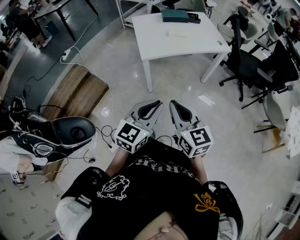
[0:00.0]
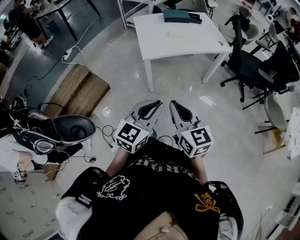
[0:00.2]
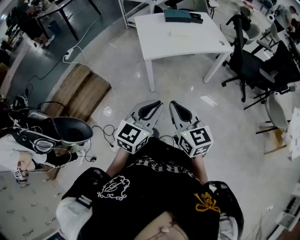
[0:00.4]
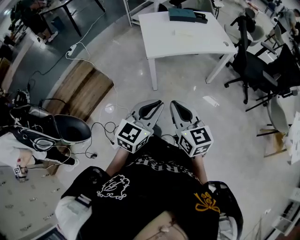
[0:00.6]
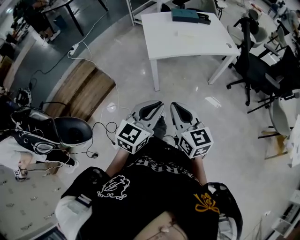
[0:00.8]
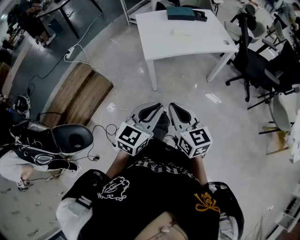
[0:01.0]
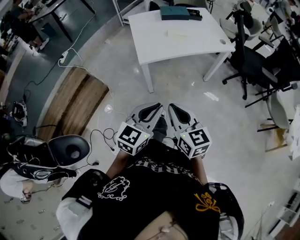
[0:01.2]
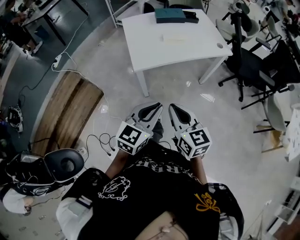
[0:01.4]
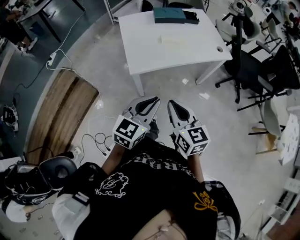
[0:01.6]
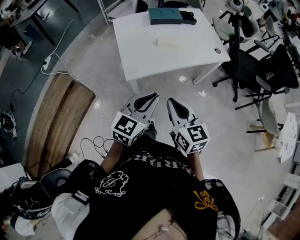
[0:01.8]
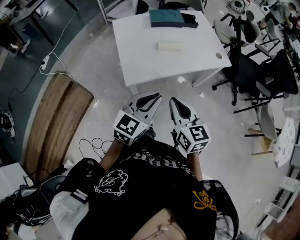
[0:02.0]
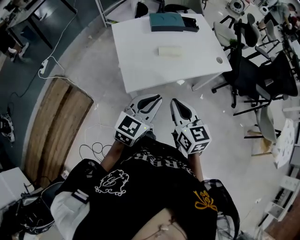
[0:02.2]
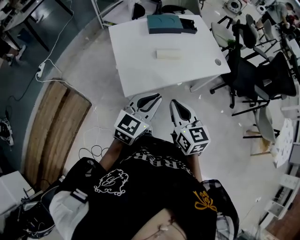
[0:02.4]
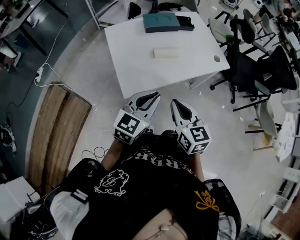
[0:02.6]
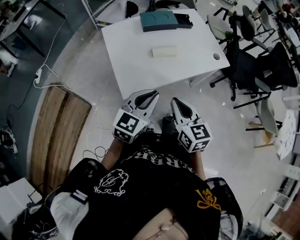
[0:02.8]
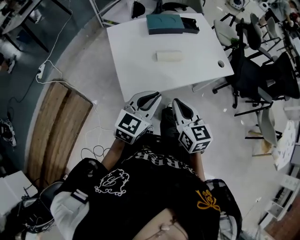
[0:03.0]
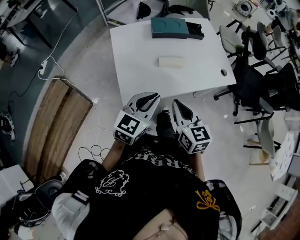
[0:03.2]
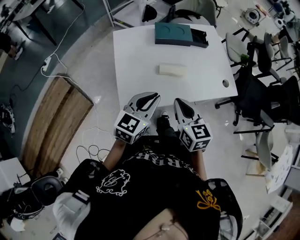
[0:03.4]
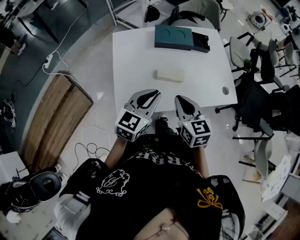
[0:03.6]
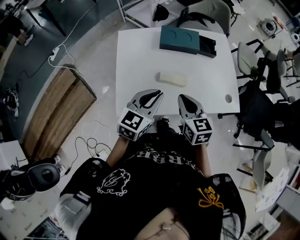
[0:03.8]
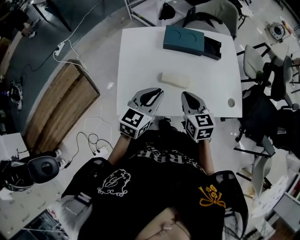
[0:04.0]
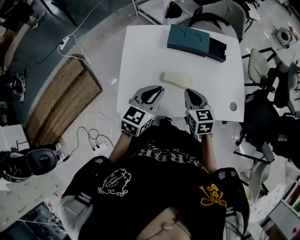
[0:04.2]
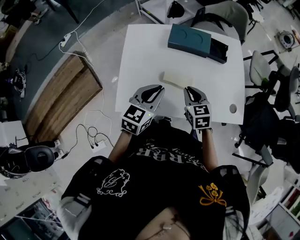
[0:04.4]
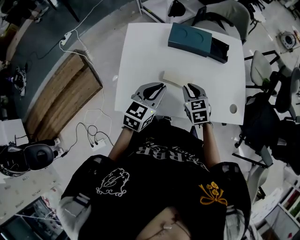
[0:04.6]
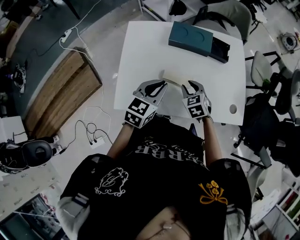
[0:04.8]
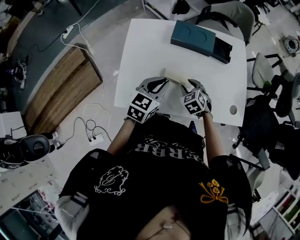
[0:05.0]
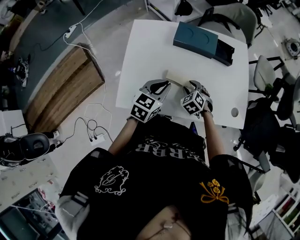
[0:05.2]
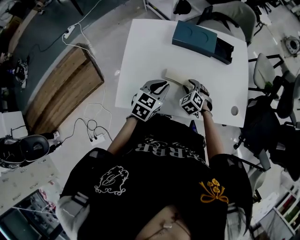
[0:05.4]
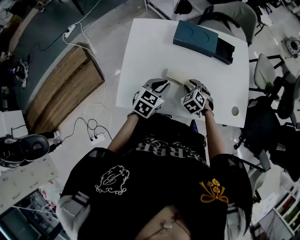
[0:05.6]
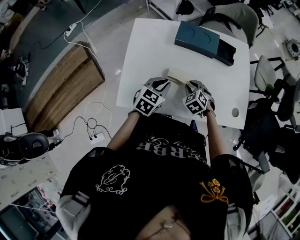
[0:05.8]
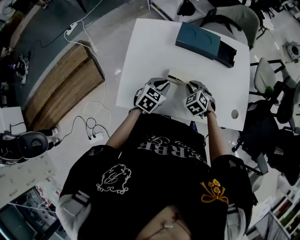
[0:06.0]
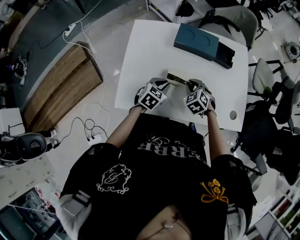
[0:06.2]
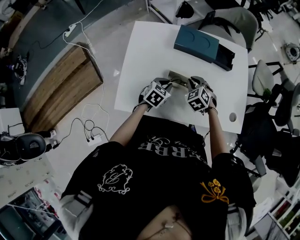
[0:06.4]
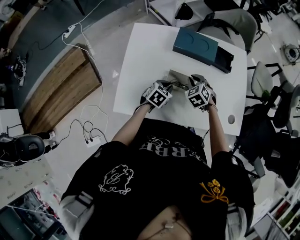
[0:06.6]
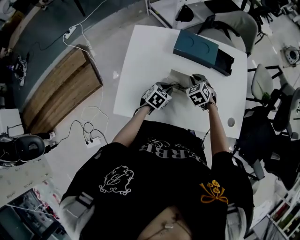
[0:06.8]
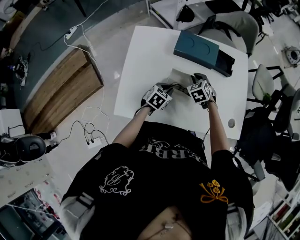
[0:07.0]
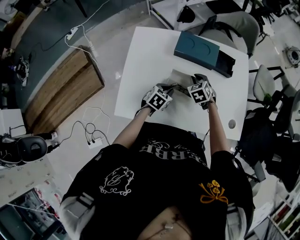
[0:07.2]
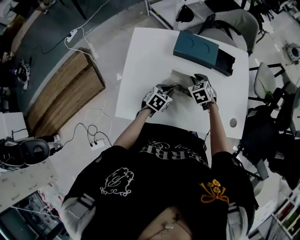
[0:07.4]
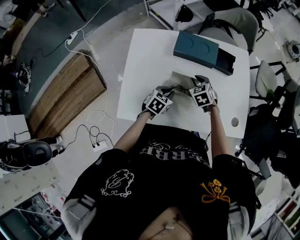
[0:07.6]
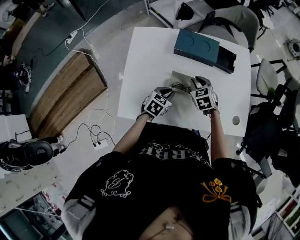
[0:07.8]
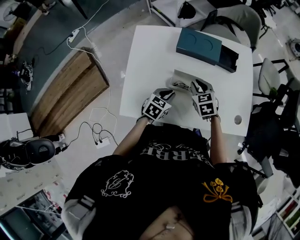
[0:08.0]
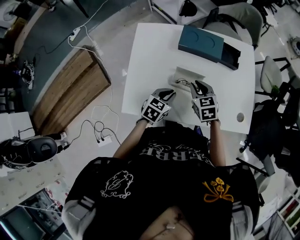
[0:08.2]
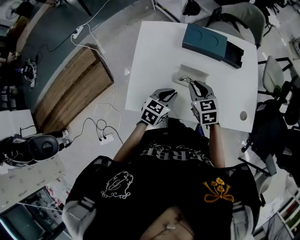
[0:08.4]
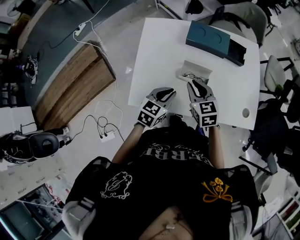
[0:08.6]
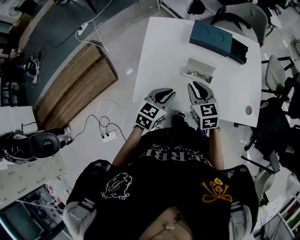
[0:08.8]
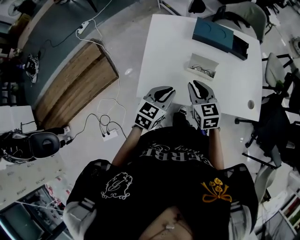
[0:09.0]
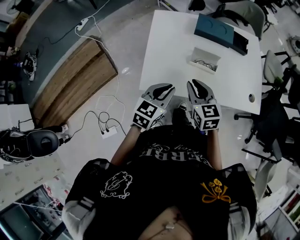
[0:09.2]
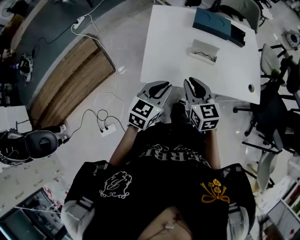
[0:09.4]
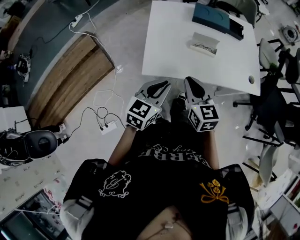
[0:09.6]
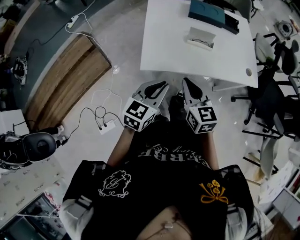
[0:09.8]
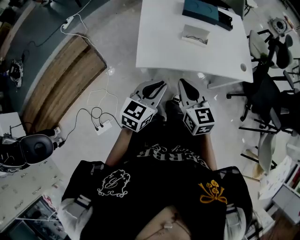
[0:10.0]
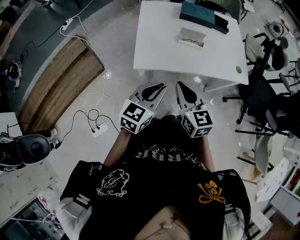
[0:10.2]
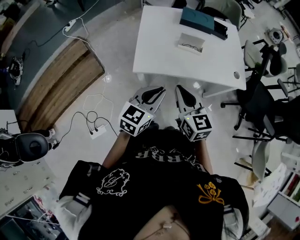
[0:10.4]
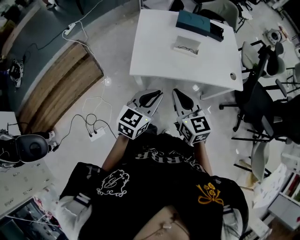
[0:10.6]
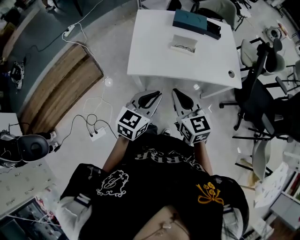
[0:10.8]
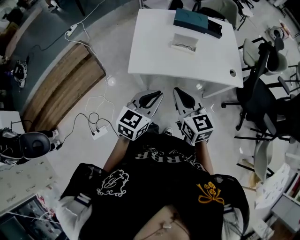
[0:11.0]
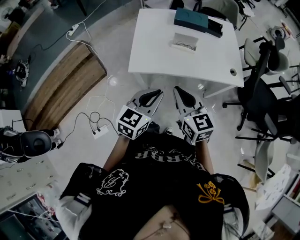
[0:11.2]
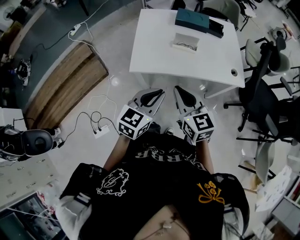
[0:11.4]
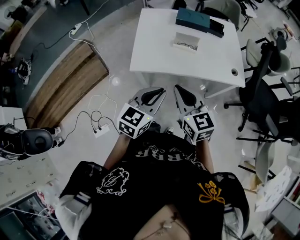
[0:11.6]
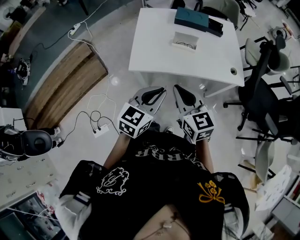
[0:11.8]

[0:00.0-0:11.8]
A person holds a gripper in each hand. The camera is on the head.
0:00.0 to 0:01.4: Both grippers travel together forward, about 15 cm.
0:01.4 to 0:03.0: Both grippers move forward, some 30 cm.
0:03.0 to 0:04.4: The left gripper goes approximately 20 cm forward, and changes its angle by about 30 degrees. Meanwhile the right gripper travels forward and downward by about 30 cm, and rotates roughly 30 degrees.
0:04.4 to 0:06.0: Both grippers travel together downward, approximately 10 cm. The right gripper rotates some 40 degrees, and opens and closes again.
0:06.0 to 0:07.4: The left gripper heads downward and forward, covering approximately 10 cm, while the right gripper shifts approximately 10 cm forward.
0:07.4 to 0:08.8: The left gripper heads upward, backward and to the left, covering about 20 cm. Meanwhile the right gripper travels backward, upward and to the left by approximately 25 cm, and turns by some 30 degrees.
0:08.8 to 0:10.4: The left gripper shifts about 25 cm backward and upward; the right gripper is displaced backward by roughly 30 cm.
0:10.4 to 0:11.8: The two grippers go some 5 cm to the right.

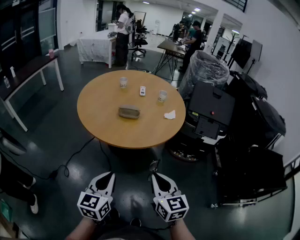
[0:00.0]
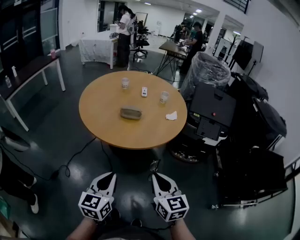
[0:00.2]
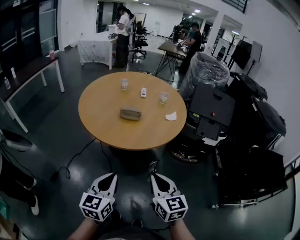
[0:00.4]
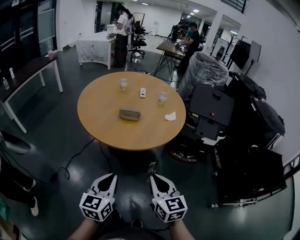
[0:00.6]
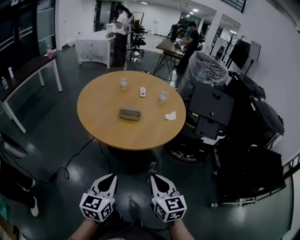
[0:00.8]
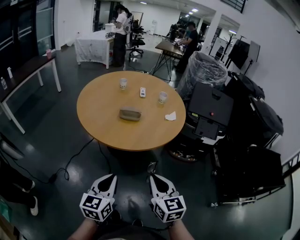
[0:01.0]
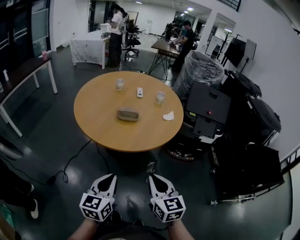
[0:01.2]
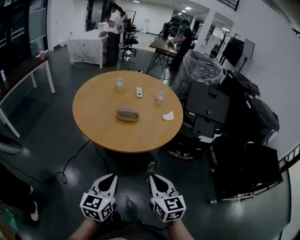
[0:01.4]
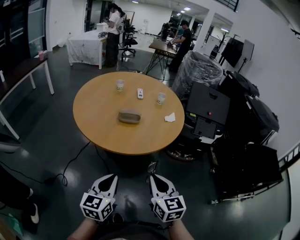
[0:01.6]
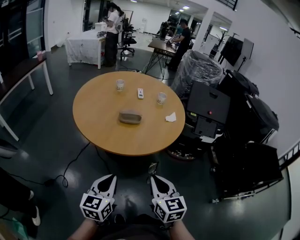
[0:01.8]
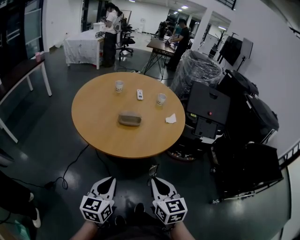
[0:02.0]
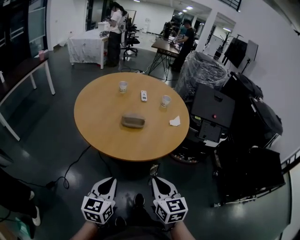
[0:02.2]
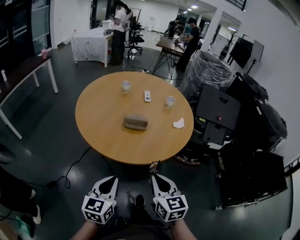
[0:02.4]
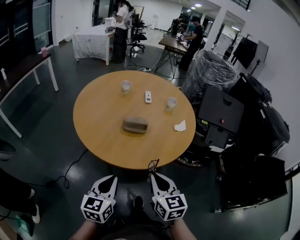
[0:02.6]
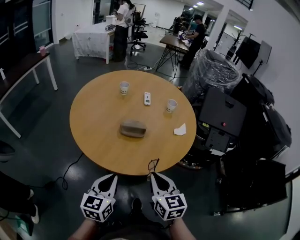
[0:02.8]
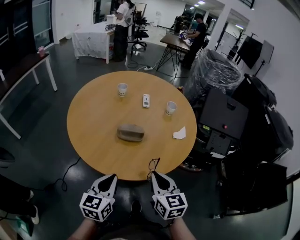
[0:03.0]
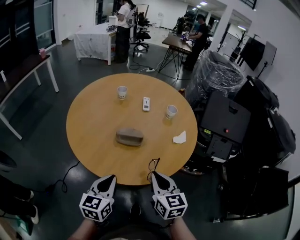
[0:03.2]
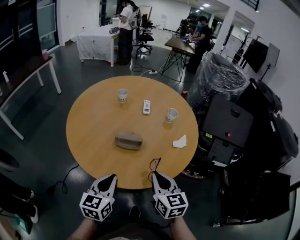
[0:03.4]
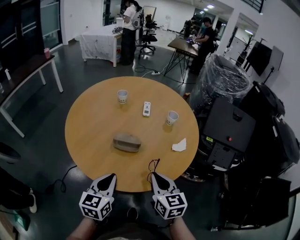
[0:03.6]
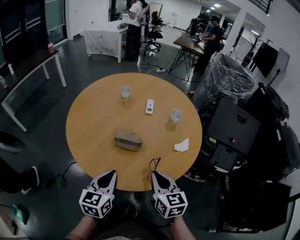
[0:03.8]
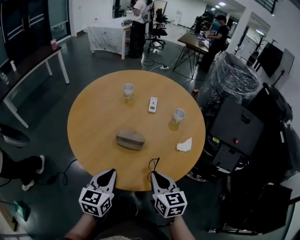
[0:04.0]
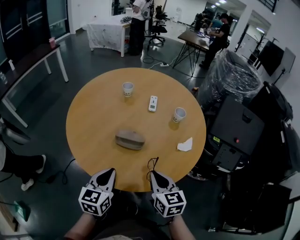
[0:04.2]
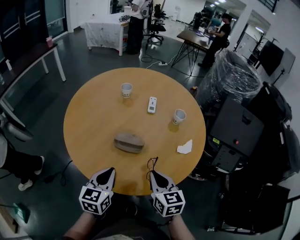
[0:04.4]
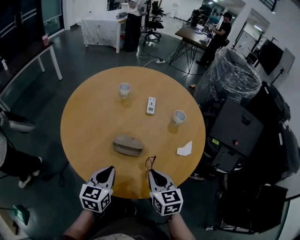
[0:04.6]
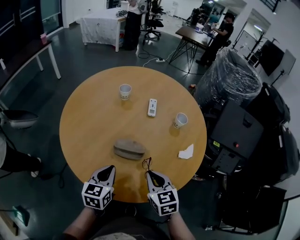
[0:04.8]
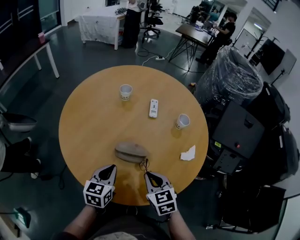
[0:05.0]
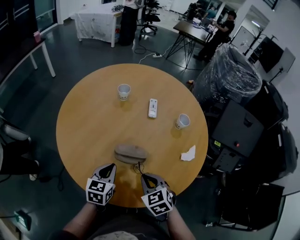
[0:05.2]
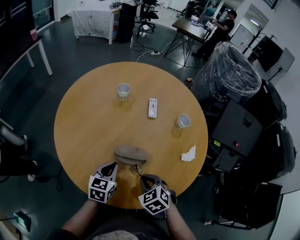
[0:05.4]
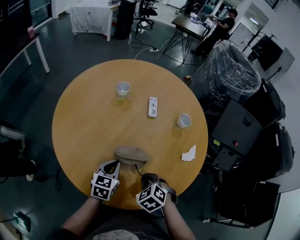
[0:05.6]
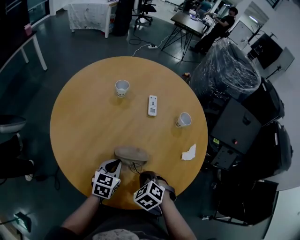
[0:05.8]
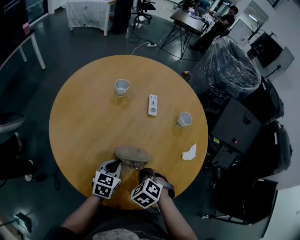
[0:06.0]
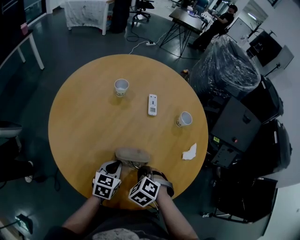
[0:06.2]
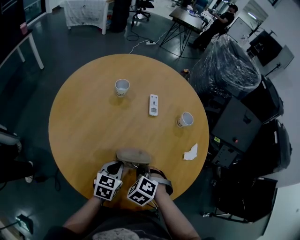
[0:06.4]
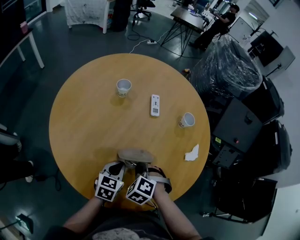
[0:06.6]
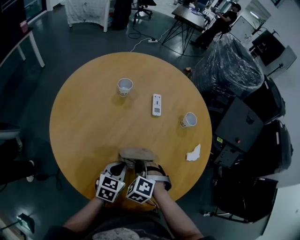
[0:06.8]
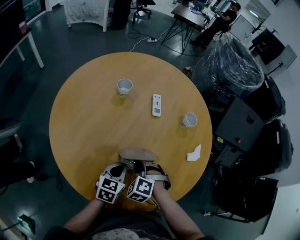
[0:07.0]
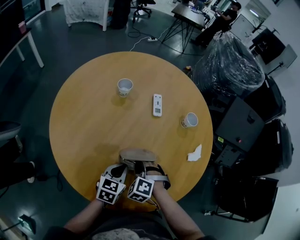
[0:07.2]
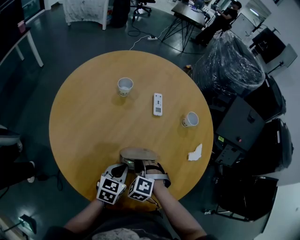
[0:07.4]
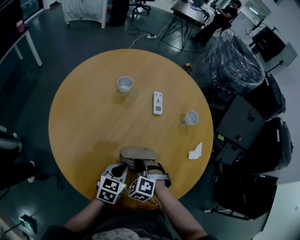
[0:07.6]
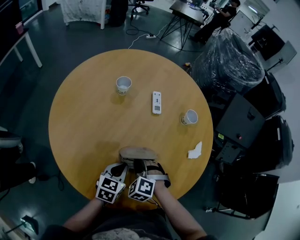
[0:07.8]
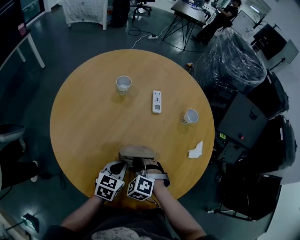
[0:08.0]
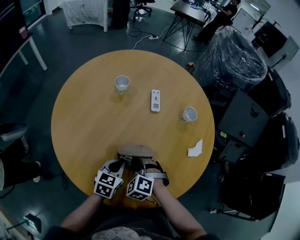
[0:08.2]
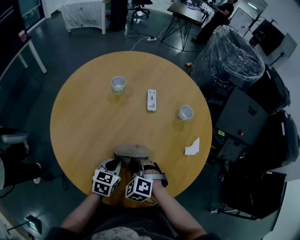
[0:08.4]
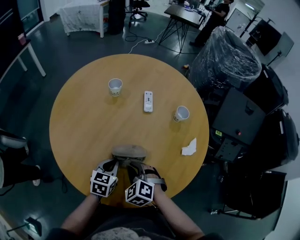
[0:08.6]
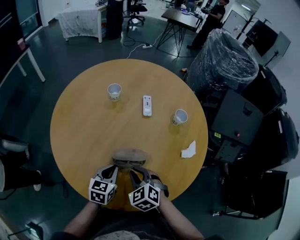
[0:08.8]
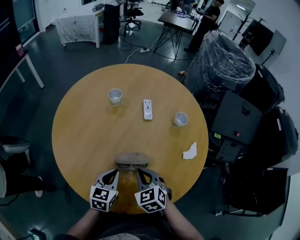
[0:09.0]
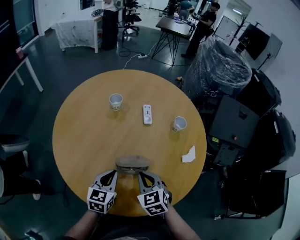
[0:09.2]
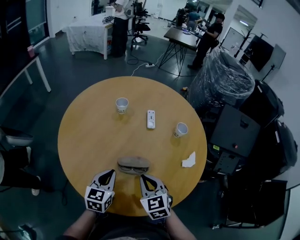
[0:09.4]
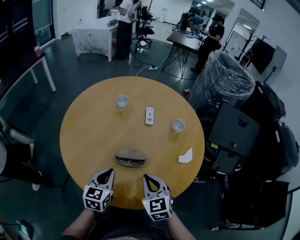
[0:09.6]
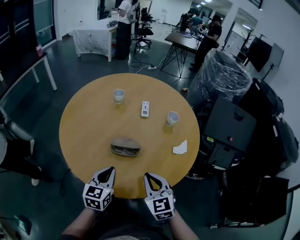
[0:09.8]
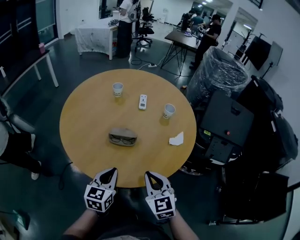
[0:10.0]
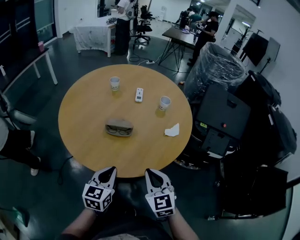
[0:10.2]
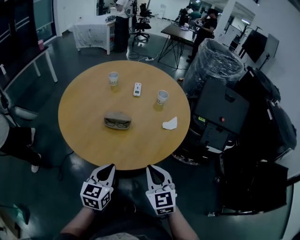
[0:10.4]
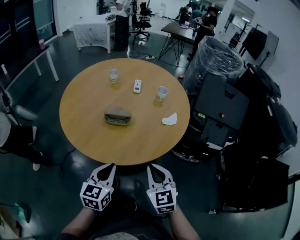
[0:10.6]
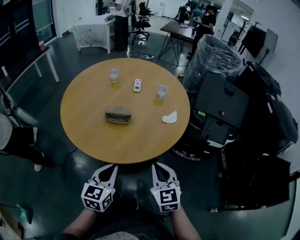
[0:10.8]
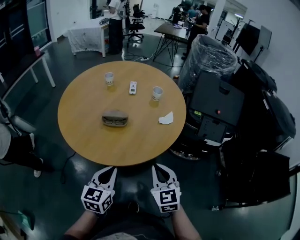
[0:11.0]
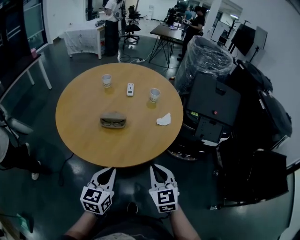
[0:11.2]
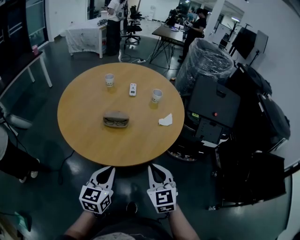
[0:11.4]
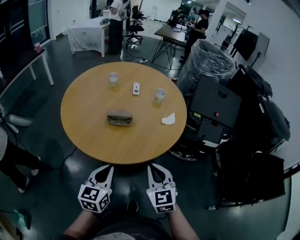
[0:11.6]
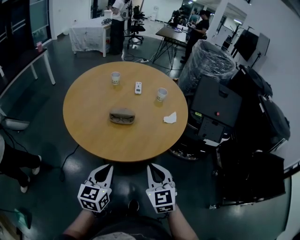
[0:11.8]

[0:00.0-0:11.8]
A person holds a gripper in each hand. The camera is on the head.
0:00.0 to 0:01.4: The right gripper ends up roughly 5 cm from where it was.
0:01.4 to 0:03.0: Both grippers move forward, roughly 20 cm.
0:03.0 to 0:04.4: Both grippers move forward, about 10 cm.
0:04.4 to 0:06.0: The right gripper heads downward, forward and to the left, covering about 15 cm, and tilts its fingers roughly 40 degrees downward. The left gripper moves forward and downward, roughly 20 cm, and swivels approximately 20 degrees.
0:06.0 to 0:07.4: The right gripper shifts roughly 5 cm to the left, and turns by about 20 degrees.
0:07.4 to 0:08.8: The right gripper travels upward by approximately 5 cm, and changes its angle by approximately 30 degrees.
0:08.8 to 0:10.4: The left gripper goes approximately 25 cm backward; the right gripper is displaced backward, to the right and upward by some 30 cm, and turns by some 30 degrees.
0:10.4 to 0:11.8: The two grippers go about 5 cm backward.
